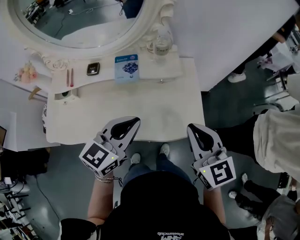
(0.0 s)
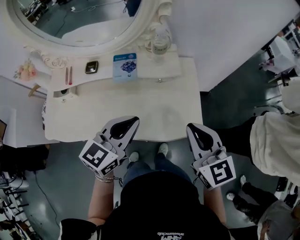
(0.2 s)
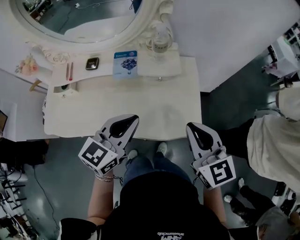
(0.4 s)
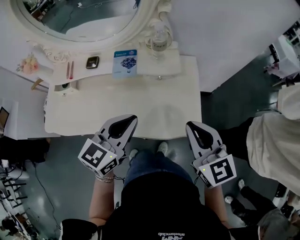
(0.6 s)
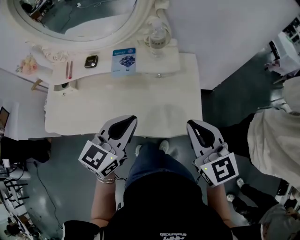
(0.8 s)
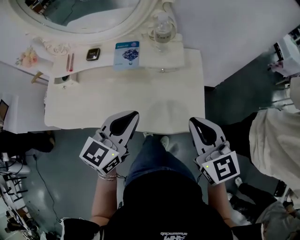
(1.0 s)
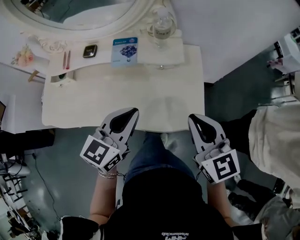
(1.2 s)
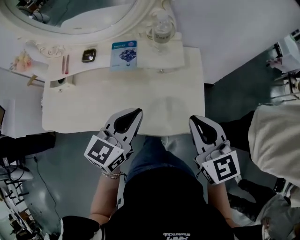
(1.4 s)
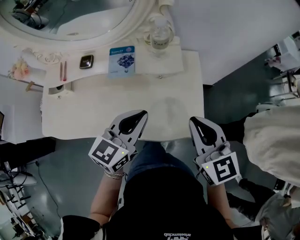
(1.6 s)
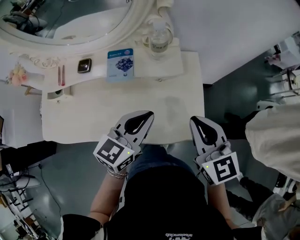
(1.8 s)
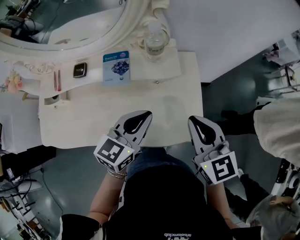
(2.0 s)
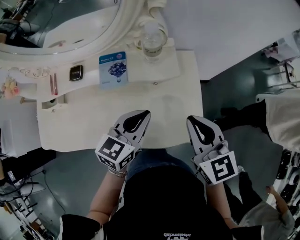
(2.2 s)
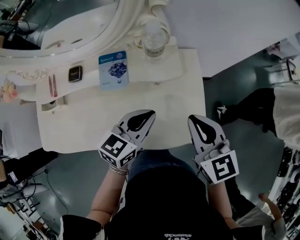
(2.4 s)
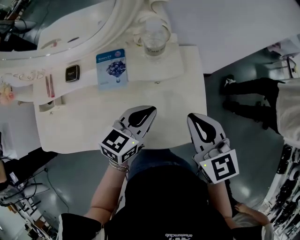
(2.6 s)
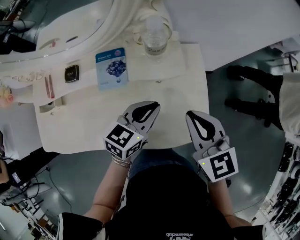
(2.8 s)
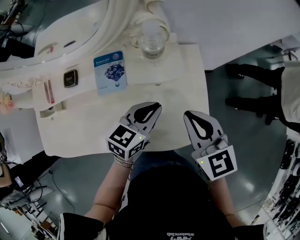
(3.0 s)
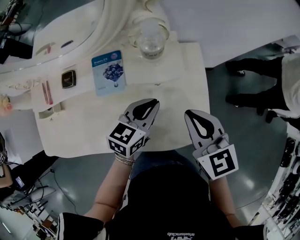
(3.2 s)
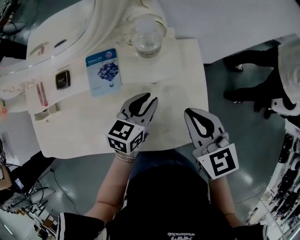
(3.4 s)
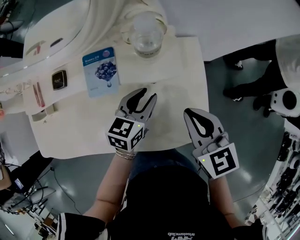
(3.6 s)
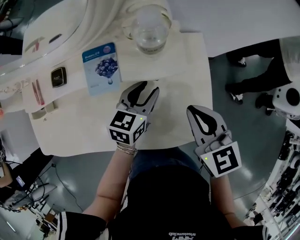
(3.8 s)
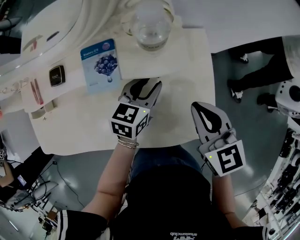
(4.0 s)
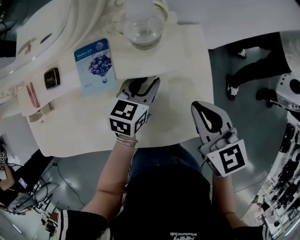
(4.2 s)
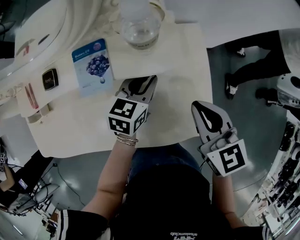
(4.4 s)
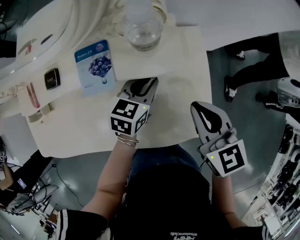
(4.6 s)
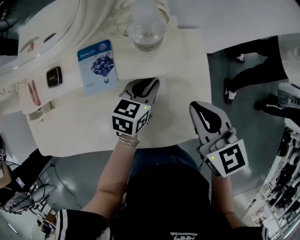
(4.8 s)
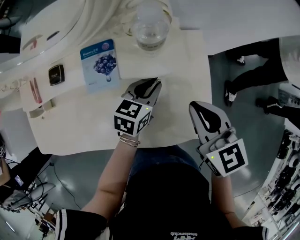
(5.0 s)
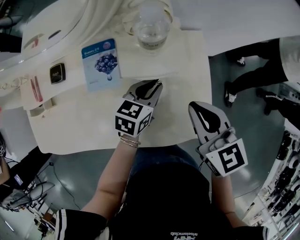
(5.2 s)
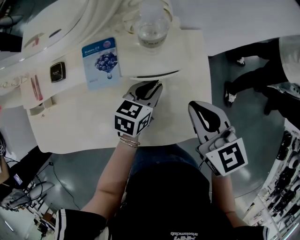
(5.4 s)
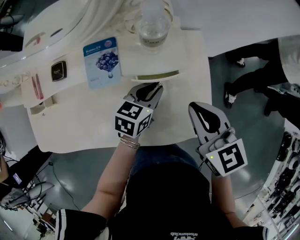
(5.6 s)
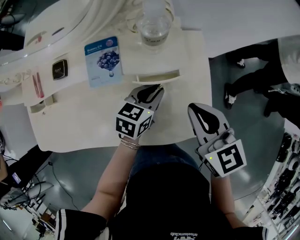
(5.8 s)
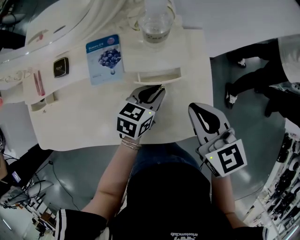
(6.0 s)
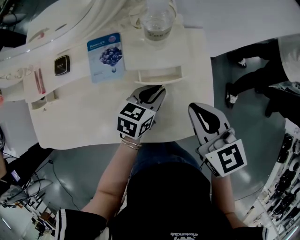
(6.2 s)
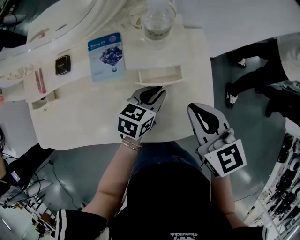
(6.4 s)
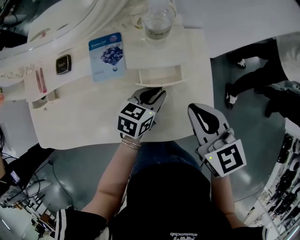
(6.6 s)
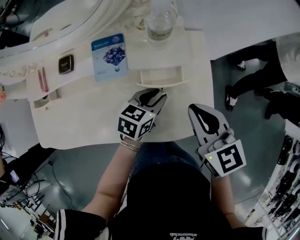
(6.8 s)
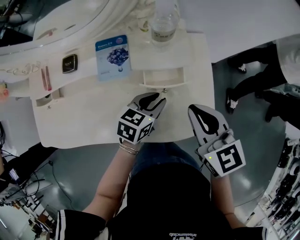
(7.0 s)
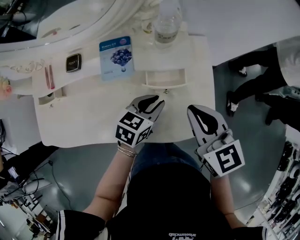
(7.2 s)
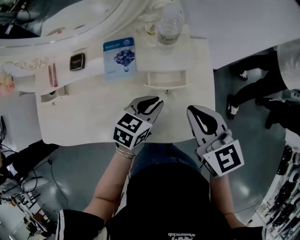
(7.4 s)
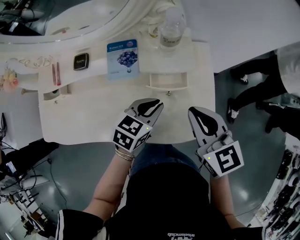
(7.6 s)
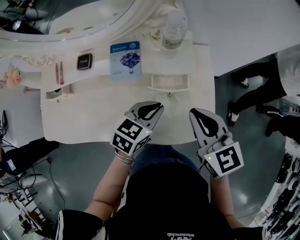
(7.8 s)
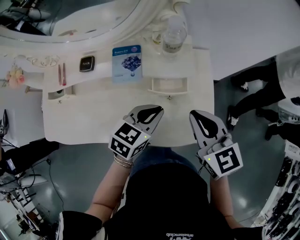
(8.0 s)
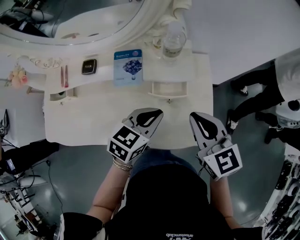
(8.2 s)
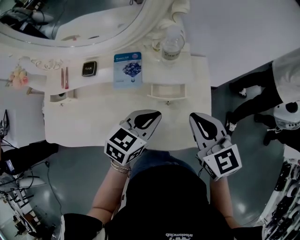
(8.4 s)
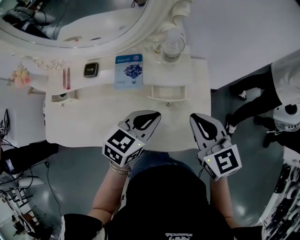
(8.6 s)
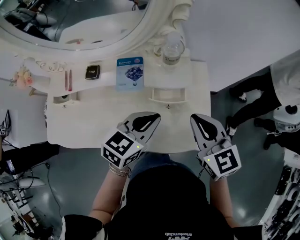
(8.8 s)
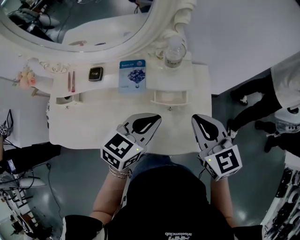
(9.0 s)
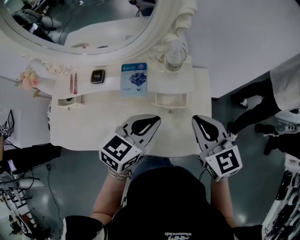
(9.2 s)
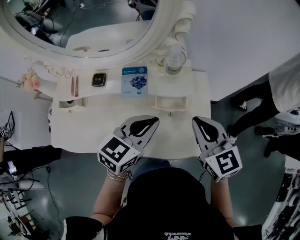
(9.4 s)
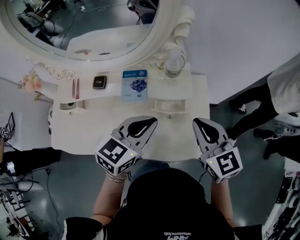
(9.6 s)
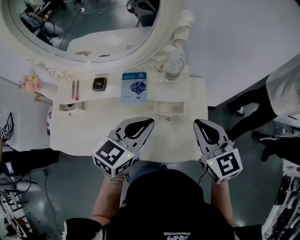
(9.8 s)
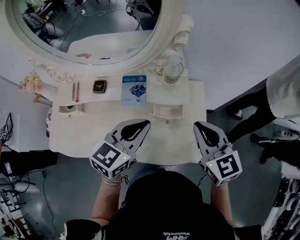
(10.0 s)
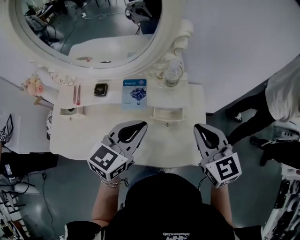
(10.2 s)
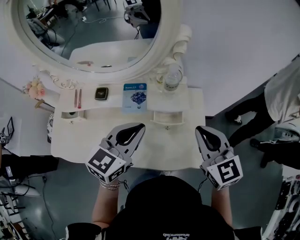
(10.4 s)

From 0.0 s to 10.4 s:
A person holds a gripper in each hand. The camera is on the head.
From 0.0 s to 1.4 s: The grippers make only small movements.
From 1.4 s to 3.0 s: The two grippers go some 15 cm forward and downward. The left gripper rotates approximately 20 degrees.
From 3.0 s to 4.4 s: The right gripper shifts by roughly 5 cm, while the left gripper heads downward and forward, covering roughly 10 cm, and opens, then closes once more.
From 4.4 s to 6.0 s: The left gripper goes some 5 cm backward.
From 6.0 s to 7.4 s: The left gripper shifts by approximately 5 cm.
From 7.4 s to 9.0 s: The left gripper is displaced upward by roughly 15 cm.
From 9.0 s to 10.4 s: The left gripper shifts roughly 10 cm upward and to the left, while the right gripper goes some 5 cm upward.

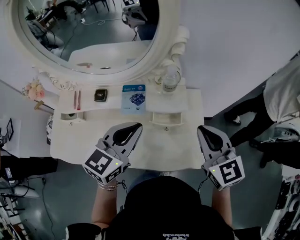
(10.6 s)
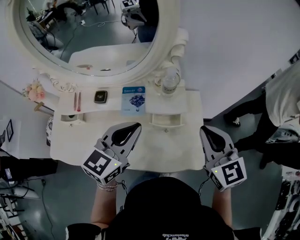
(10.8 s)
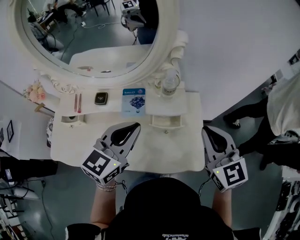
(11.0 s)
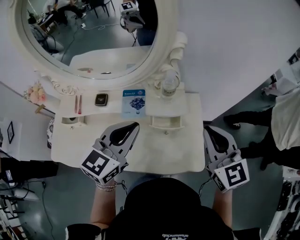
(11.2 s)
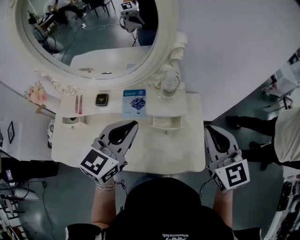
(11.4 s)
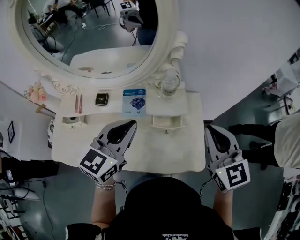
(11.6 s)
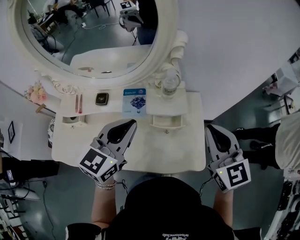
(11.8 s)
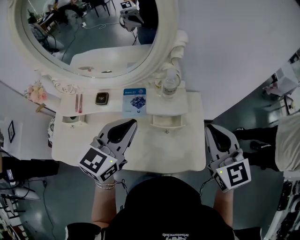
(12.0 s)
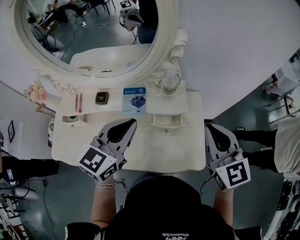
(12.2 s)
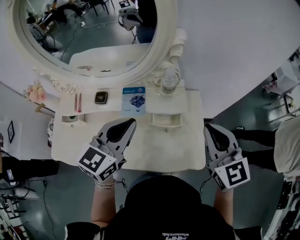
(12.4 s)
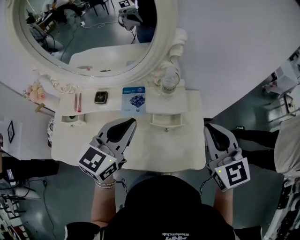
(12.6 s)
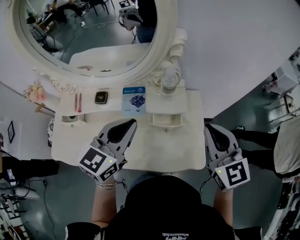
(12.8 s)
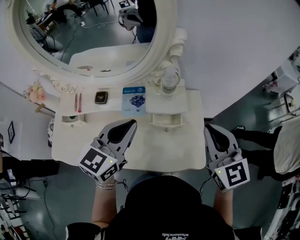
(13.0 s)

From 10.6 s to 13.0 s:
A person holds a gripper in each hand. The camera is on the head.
From 10.6 s to 11.8 s: The grippers stay close to where they were, moving slightly.
From 11.8 s to 13.0 s: Both grippers stay about where they are.

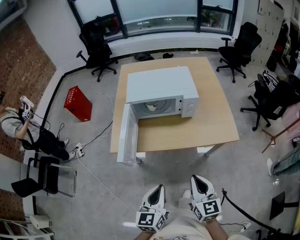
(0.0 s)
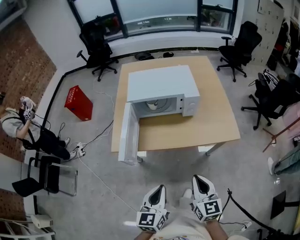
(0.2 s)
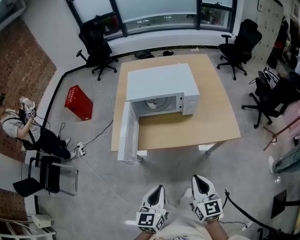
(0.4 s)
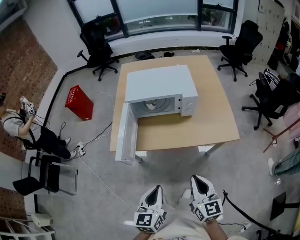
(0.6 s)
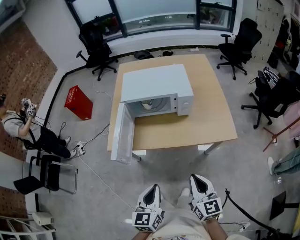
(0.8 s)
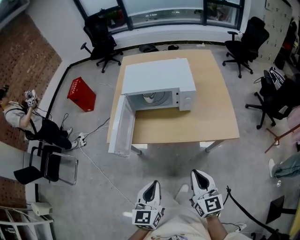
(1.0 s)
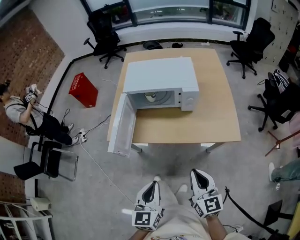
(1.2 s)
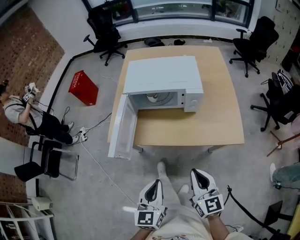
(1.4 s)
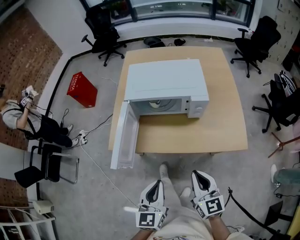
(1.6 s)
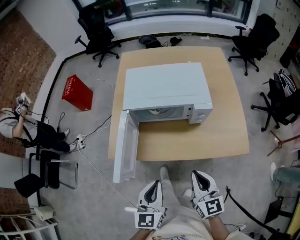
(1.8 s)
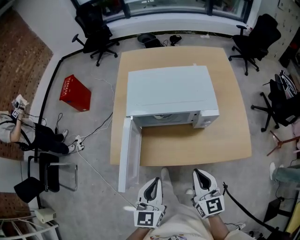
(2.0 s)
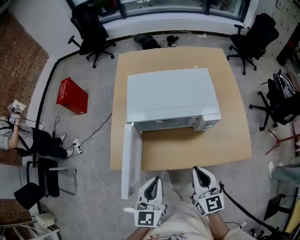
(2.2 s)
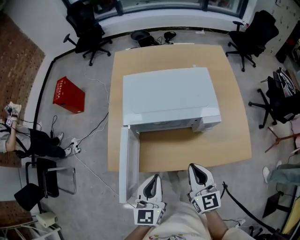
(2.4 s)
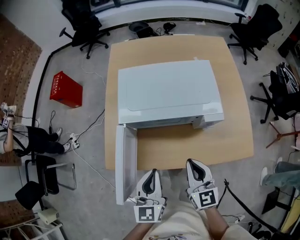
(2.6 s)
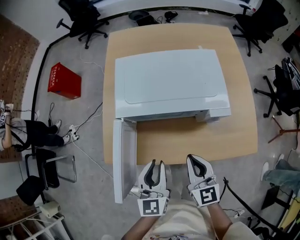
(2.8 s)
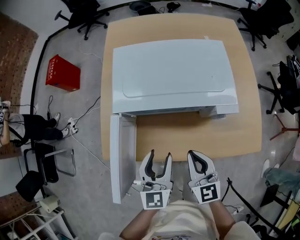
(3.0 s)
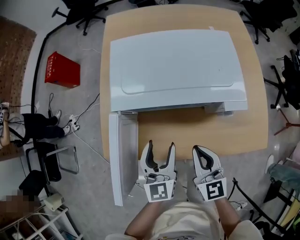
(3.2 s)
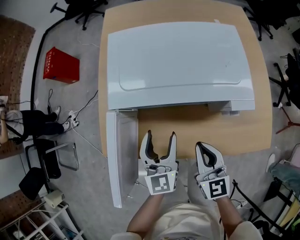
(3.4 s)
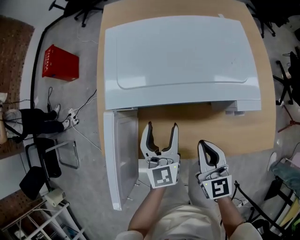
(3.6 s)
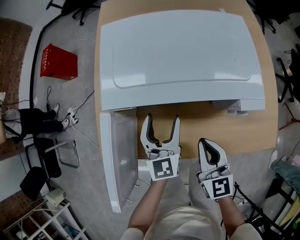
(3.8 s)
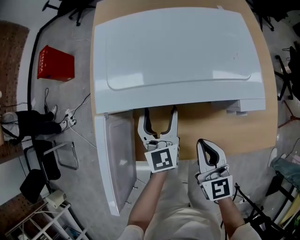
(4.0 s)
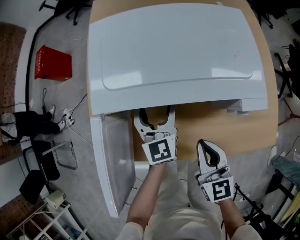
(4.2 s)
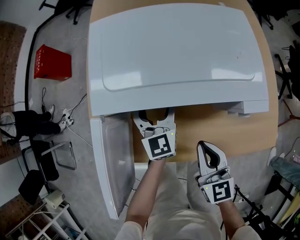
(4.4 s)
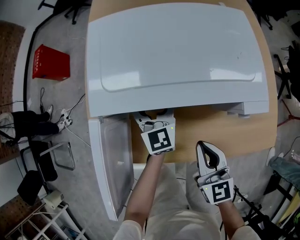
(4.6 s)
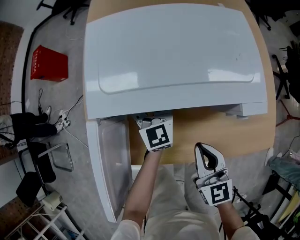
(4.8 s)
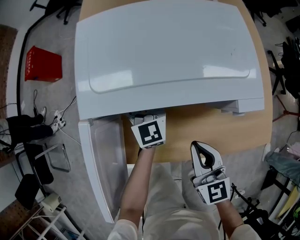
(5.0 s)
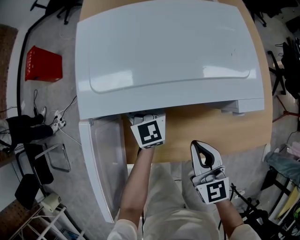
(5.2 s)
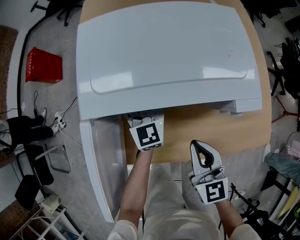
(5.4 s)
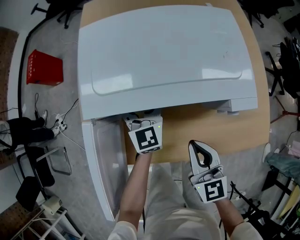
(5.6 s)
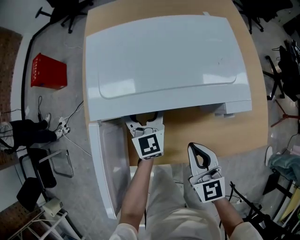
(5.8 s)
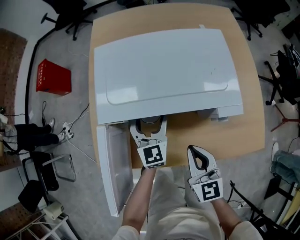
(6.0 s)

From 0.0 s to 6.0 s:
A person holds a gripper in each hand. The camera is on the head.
From 0.0 s to 1.6 s: Both grippers move forward, some 10 cm.
From 1.6 s to 3.0 s: Both grippers travel together forward, approximately 25 cm. The left gripper opens up.
From 3.0 s to 4.4 s: The right gripper heads downward, covering about 10 cm, while the left gripper is displaced forward and downward by about 20 cm, and opens.
From 4.4 s to 6.0 s: The grippers make only small movements.

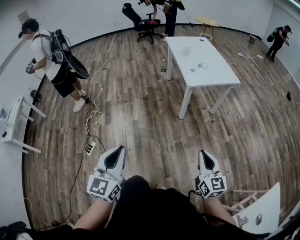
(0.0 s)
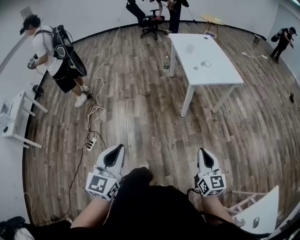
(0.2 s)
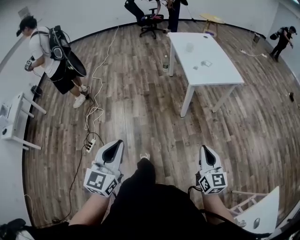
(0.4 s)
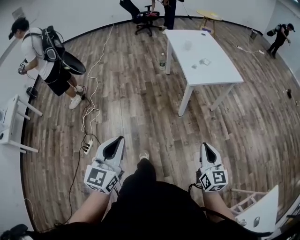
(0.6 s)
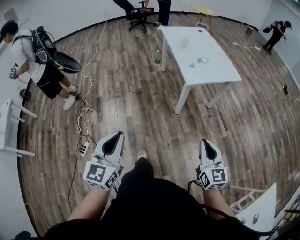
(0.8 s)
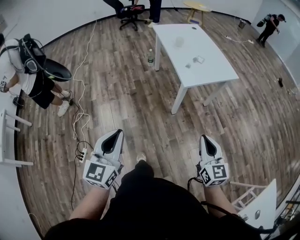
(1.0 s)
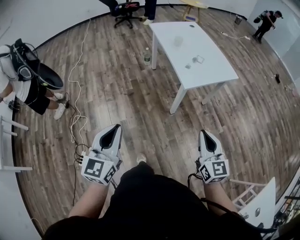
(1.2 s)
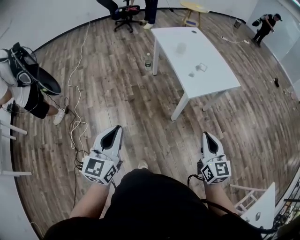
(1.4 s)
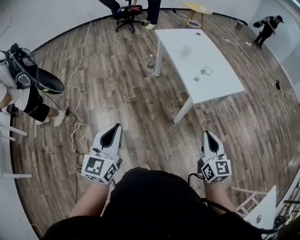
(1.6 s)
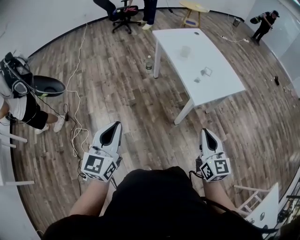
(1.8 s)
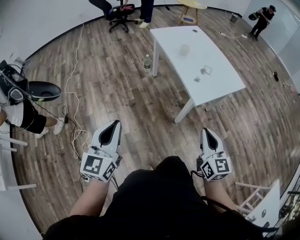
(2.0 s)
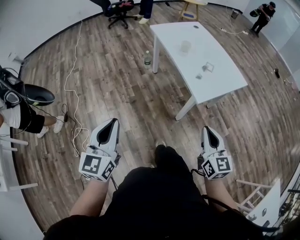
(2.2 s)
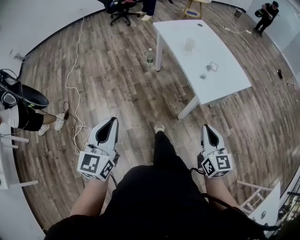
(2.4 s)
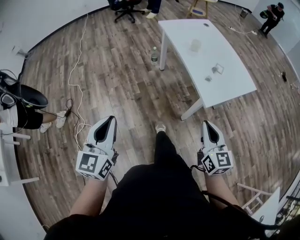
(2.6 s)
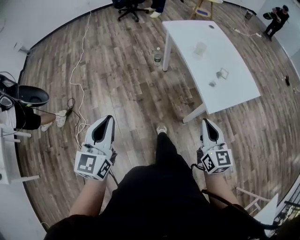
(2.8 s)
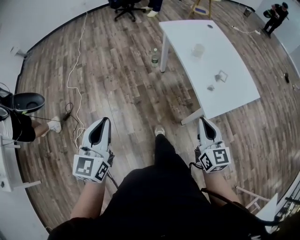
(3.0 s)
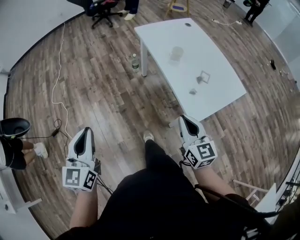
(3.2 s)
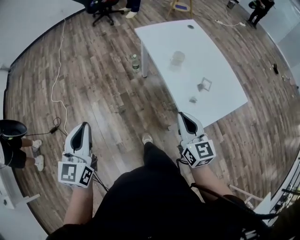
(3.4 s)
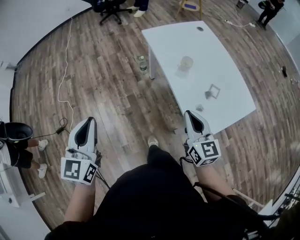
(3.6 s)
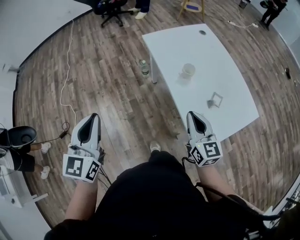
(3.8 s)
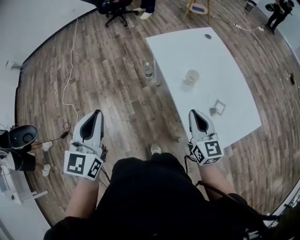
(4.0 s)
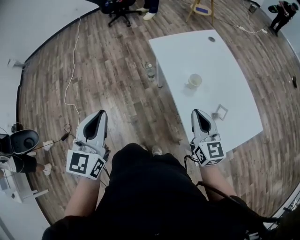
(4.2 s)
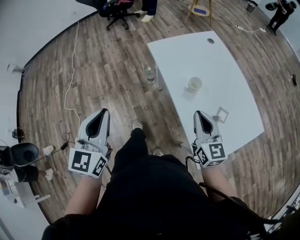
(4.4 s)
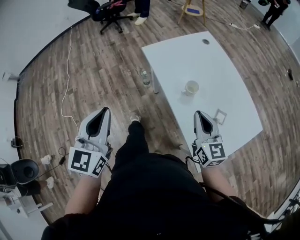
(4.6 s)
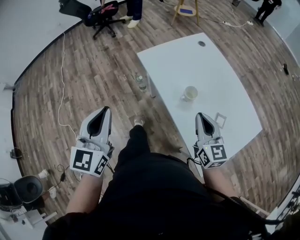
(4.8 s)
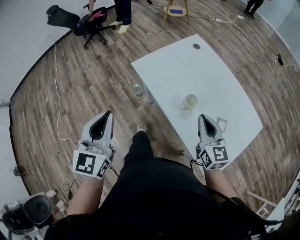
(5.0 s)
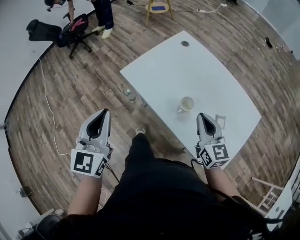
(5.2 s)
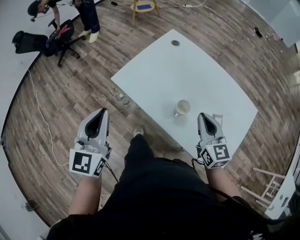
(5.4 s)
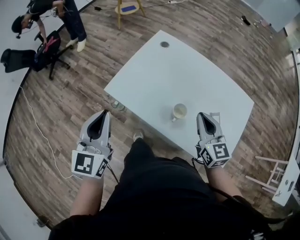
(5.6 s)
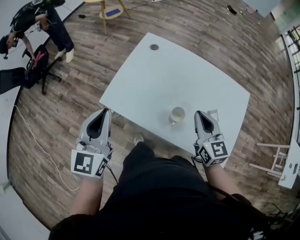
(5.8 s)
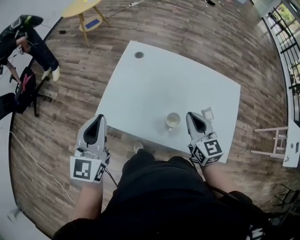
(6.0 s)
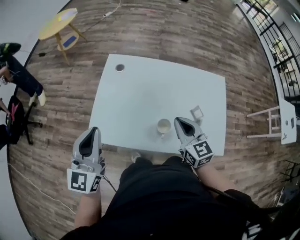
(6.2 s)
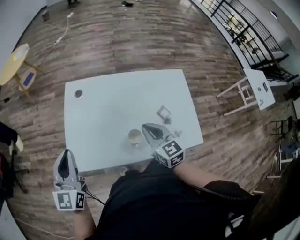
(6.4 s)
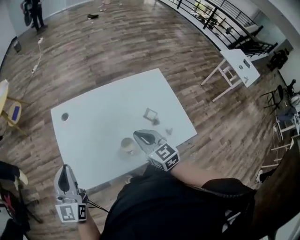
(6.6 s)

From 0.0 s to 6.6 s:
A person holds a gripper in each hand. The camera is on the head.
From 0.0 s to 1.6 s: The grippers both shift forward by some 30 cm.
From 1.6 s to 3.2 s: Both grippers travel together forward, about 20 cm.
From 3.2 s to 5.0 s: Both grippers travel together forward, some 35 cm. The left gripper turns by about 20 degrees.
From 5.0 s to 6.6 s: The left gripper changes place by about 35 cm, and turns by approximately 60 degrees, while the right gripper shifts by roughly 10 cm, and turns by some 50 degrees.
